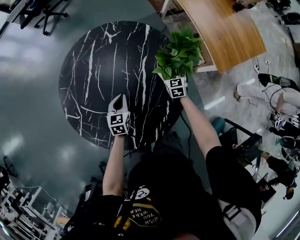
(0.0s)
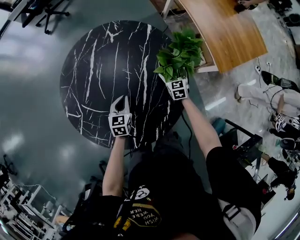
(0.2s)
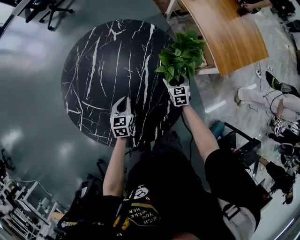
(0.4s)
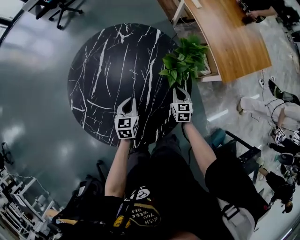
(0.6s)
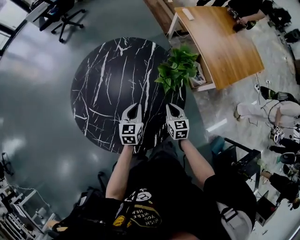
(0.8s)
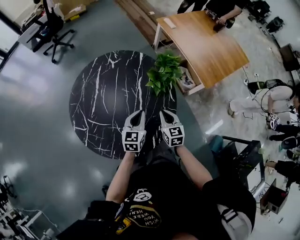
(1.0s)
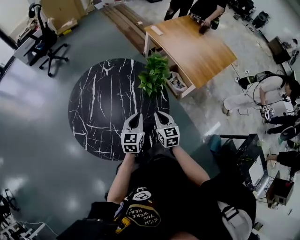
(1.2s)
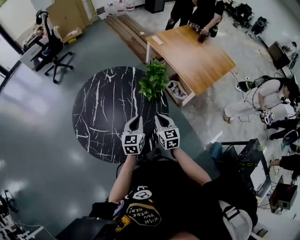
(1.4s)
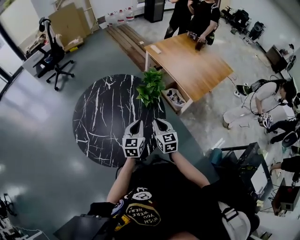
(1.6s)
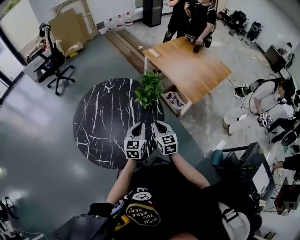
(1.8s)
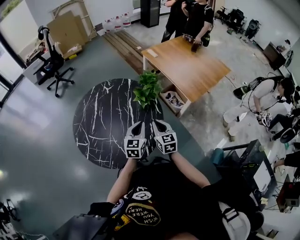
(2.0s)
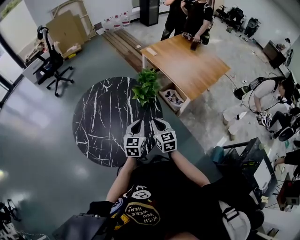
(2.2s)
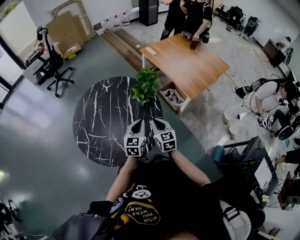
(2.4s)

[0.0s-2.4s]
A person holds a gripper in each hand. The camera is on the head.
0.0s to 1.2s: The left gripper heads upward, to the right and backward, covering some 25 cm, and rotates some 20 degrees. Meanwhile the right gripper heads upward and backward, covering some 35 cm, and closes its fingers.
1.2s to 2.4s: The right gripper shifts about 5 cm upward, while the left gripper travels to the right and upward by approximately 10 cm.

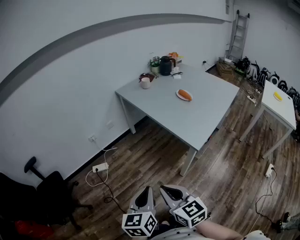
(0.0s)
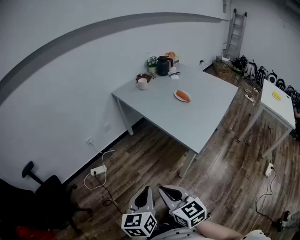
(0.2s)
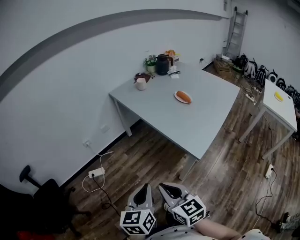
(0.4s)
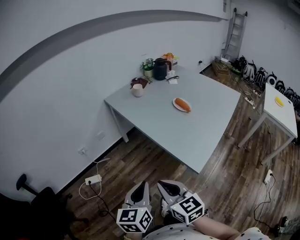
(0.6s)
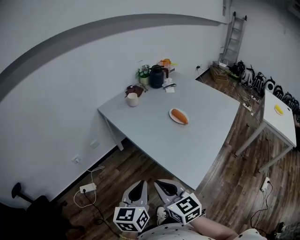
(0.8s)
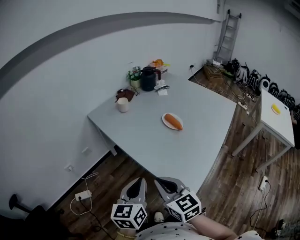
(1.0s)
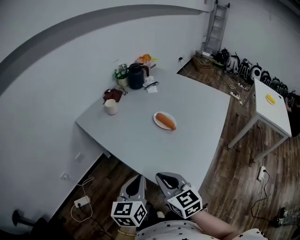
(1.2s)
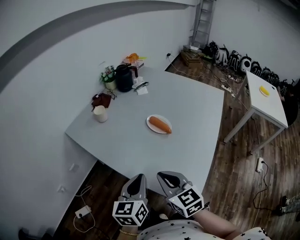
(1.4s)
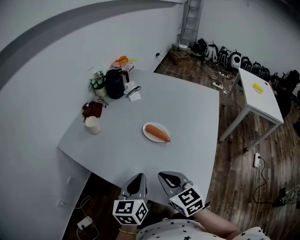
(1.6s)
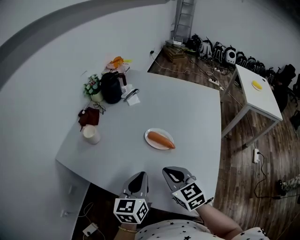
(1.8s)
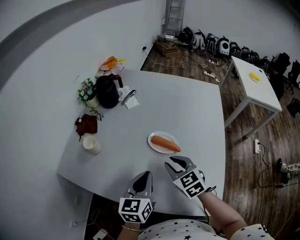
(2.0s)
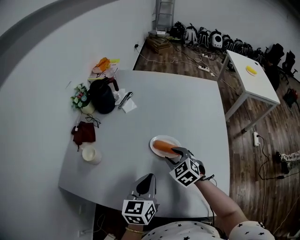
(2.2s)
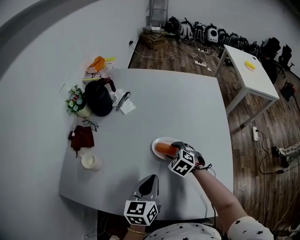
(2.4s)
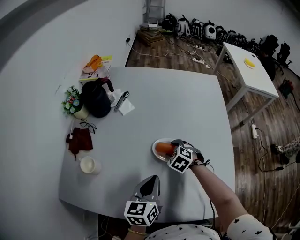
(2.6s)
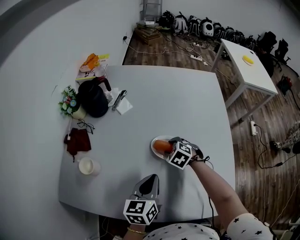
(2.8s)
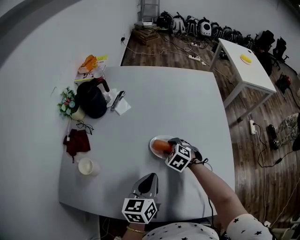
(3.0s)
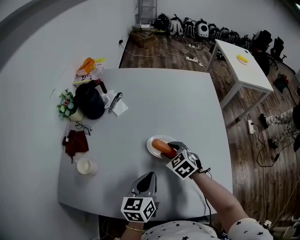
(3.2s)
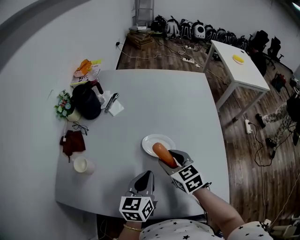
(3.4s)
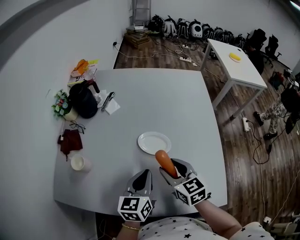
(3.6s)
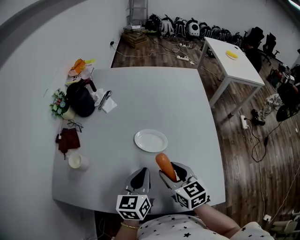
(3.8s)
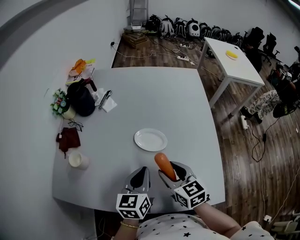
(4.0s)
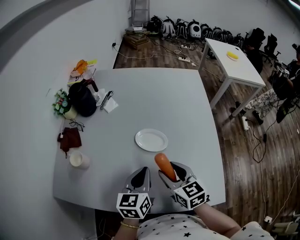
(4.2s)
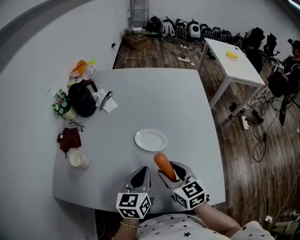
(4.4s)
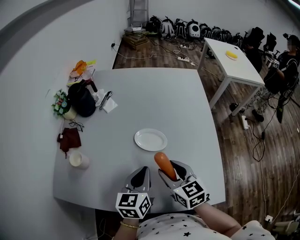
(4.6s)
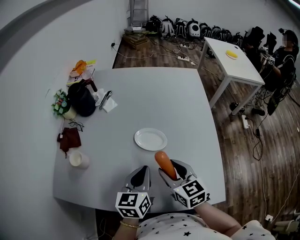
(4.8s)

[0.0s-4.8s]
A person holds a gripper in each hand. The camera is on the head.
0.0s to 1.6s: Both grippers are carried about 60 cm. The right gripper turns by roughly 20 degrees; the left gripper changes its angle by approximately 30 degrees.
1.6s to 3.2s: The right gripper ends up approximately 30 cm from where it was, changes its angle by roughly 30 degrees, and opens; the left gripper changes place by some 20 cm, and rotates some 30 degrees.
3.2s to 4.8s: The right gripper goes some 15 cm backward and upward, and swivels about 30 degrees, while the left gripper ends up roughly 5 cm from where it was.

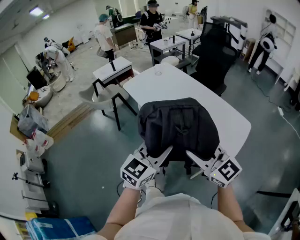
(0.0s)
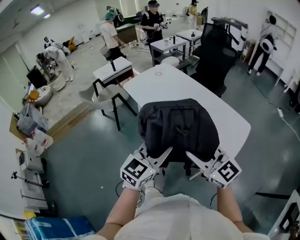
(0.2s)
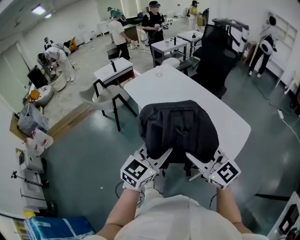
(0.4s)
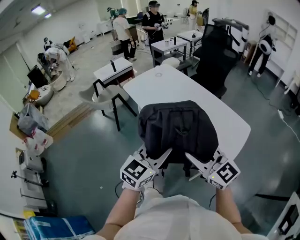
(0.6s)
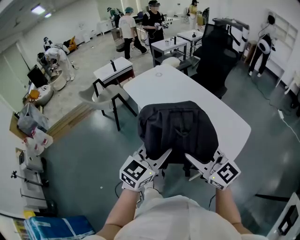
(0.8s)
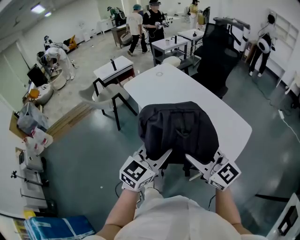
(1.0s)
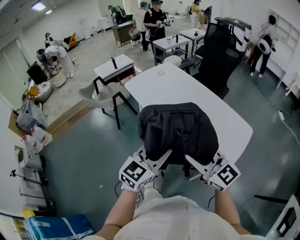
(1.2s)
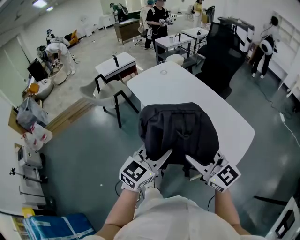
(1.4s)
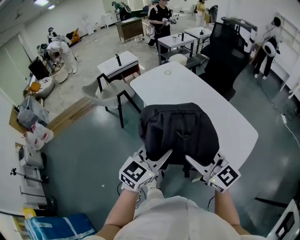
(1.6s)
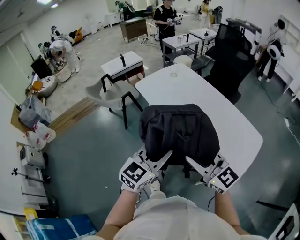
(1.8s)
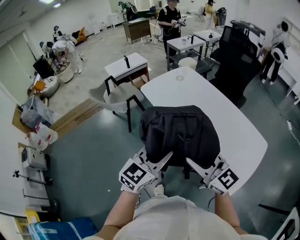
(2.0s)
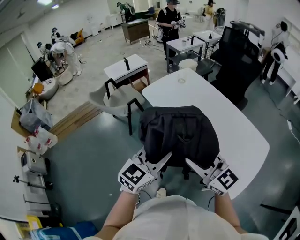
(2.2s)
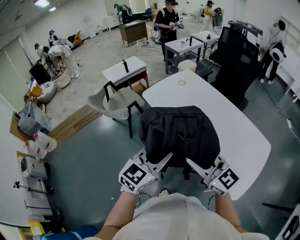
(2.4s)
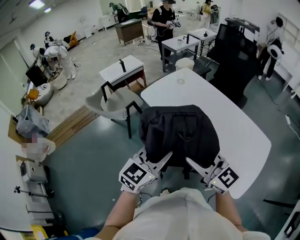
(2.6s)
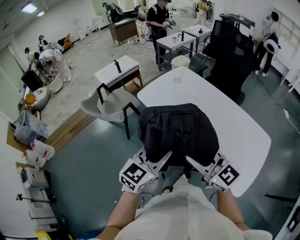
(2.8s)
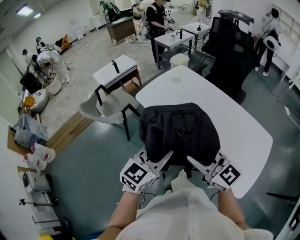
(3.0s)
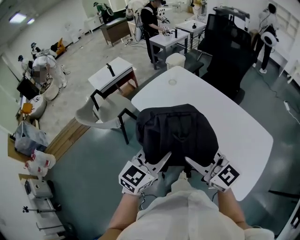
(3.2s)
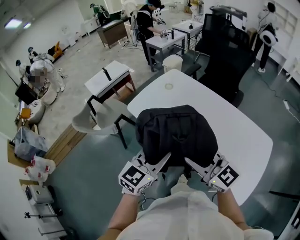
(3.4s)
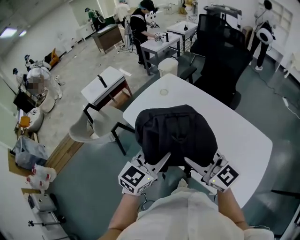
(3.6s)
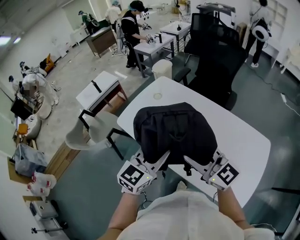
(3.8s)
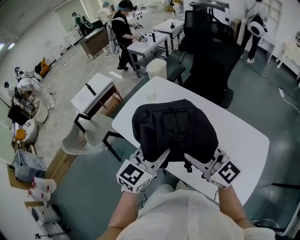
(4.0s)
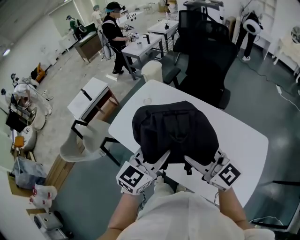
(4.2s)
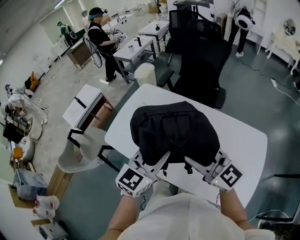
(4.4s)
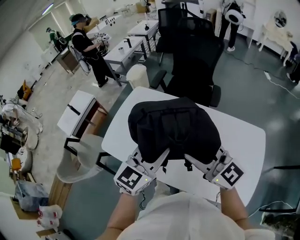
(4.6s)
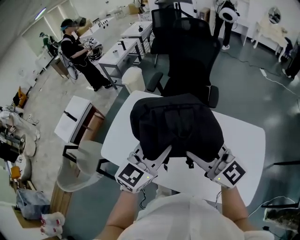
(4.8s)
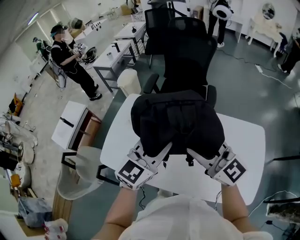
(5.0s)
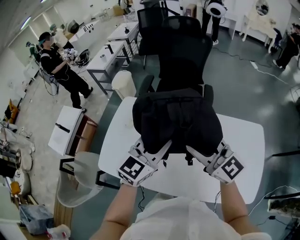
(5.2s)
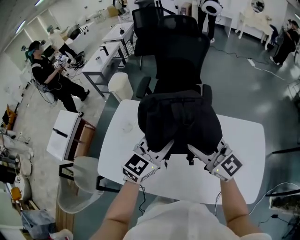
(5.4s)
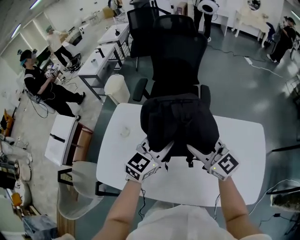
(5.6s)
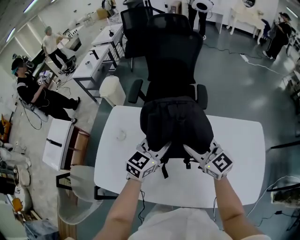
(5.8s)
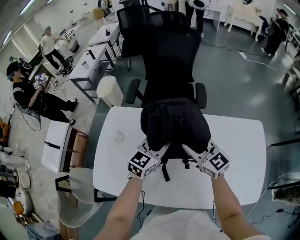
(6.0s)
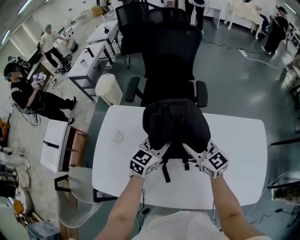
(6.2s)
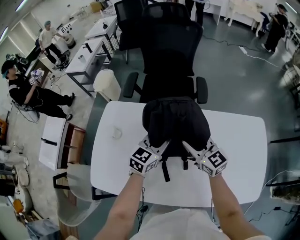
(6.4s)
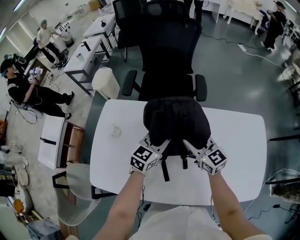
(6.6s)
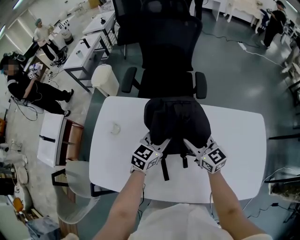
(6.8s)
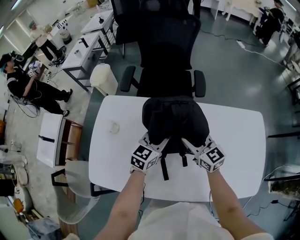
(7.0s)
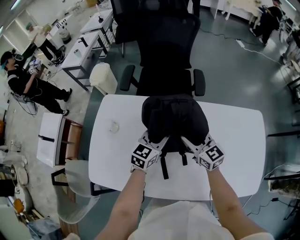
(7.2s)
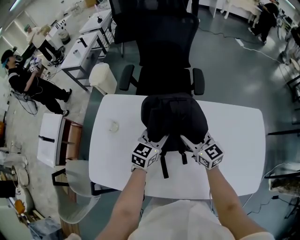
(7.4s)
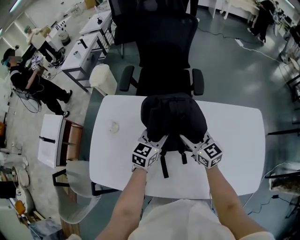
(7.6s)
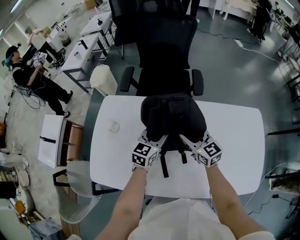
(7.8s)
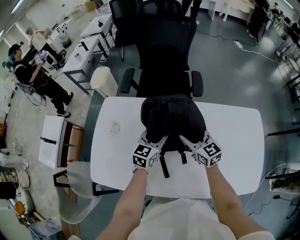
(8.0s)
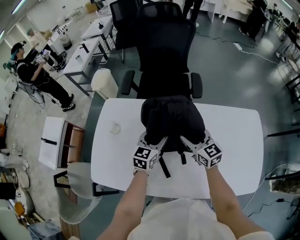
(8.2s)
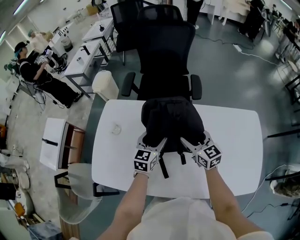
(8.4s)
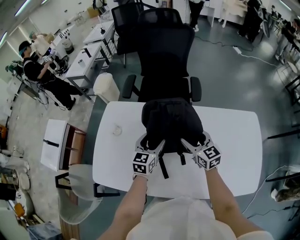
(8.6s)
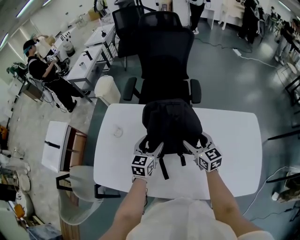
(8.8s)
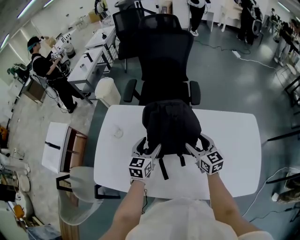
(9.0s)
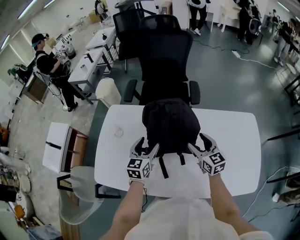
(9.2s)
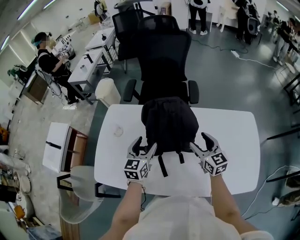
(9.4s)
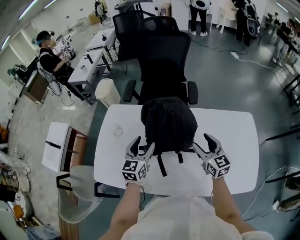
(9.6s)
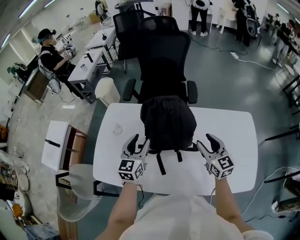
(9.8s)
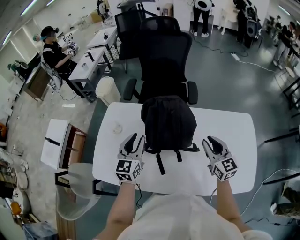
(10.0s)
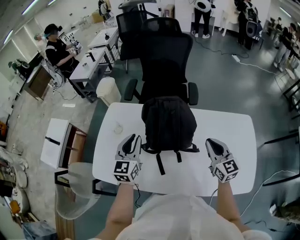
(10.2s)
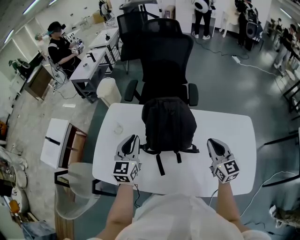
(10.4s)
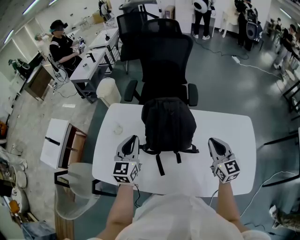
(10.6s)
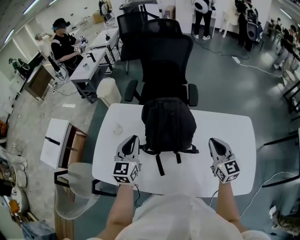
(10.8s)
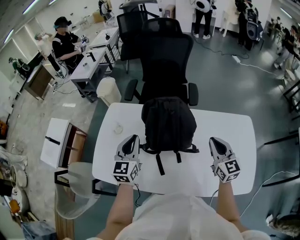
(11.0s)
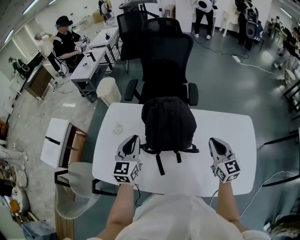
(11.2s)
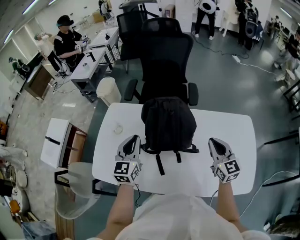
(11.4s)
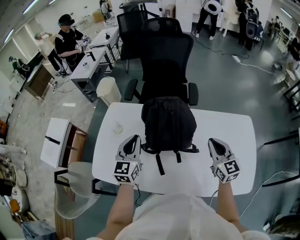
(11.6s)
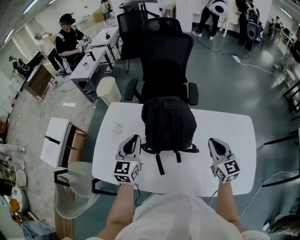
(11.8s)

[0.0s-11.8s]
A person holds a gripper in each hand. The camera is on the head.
0.0s to 1.4s: The grippers stay close to where they were, moving slightly.
1.4s to 3.0s: Both grippers move forward and to the left, some 25 cm.
3.0s to 4.4s: The grippers both shift forward and to the right by about 25 cm.
4.4s to 6.0s: Both grippers travel together forward and downward, about 25 cm. The right gripper rotates about 30 degrees; the left gripper rotates approximately 20 degrees.
6.0s to 7.4s: The grippers both shift downward by approximately 5 cm.
7.4s to 8.8s: The left gripper ends up roughly 5 cm from where it was, and opens.
8.8s to 10.4s: The left gripper moves upward and to the left, some 15 cm, and closes its fingers. The right gripper shifts about 15 cm upward, to the right and backward, and closes up.
10.4s to 11.8s: Both grippers stay put.

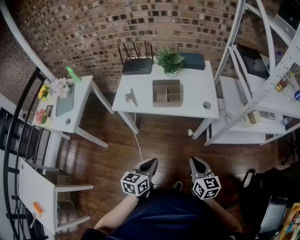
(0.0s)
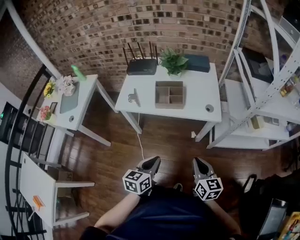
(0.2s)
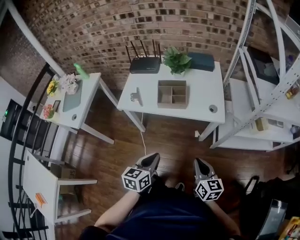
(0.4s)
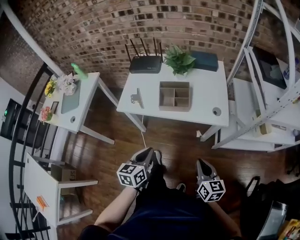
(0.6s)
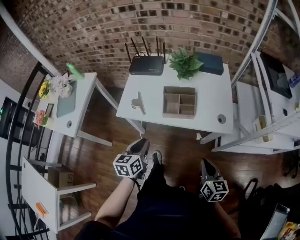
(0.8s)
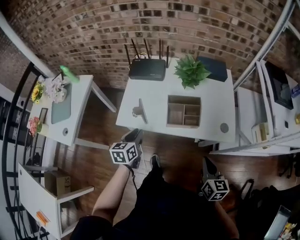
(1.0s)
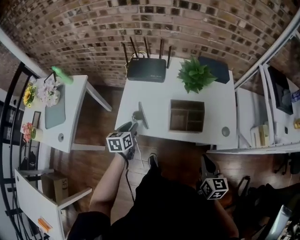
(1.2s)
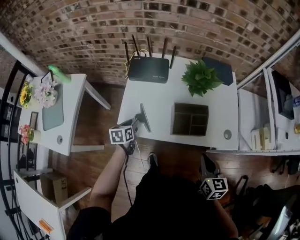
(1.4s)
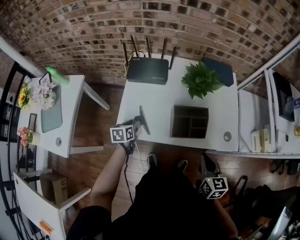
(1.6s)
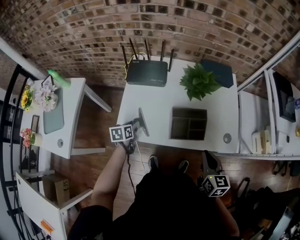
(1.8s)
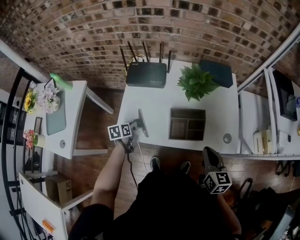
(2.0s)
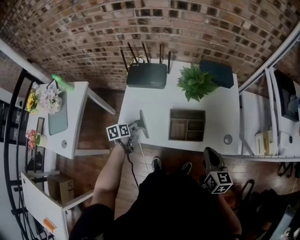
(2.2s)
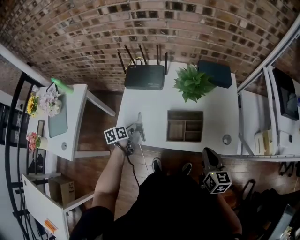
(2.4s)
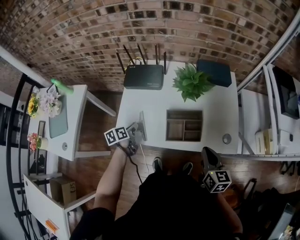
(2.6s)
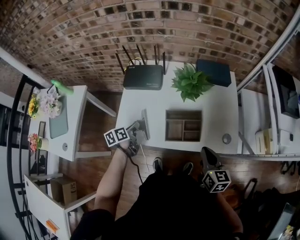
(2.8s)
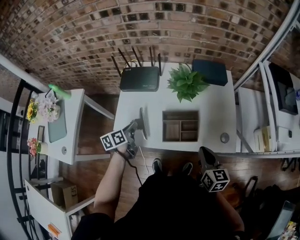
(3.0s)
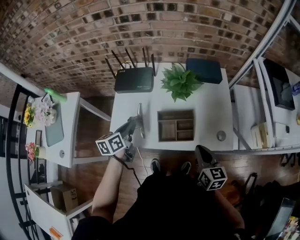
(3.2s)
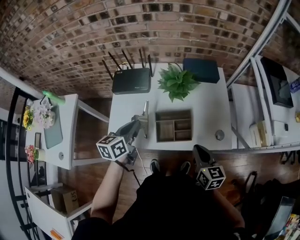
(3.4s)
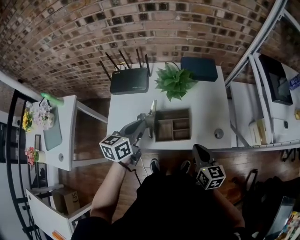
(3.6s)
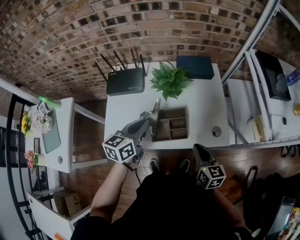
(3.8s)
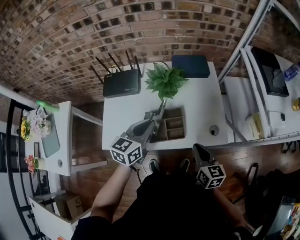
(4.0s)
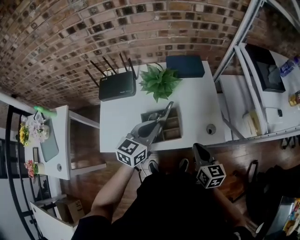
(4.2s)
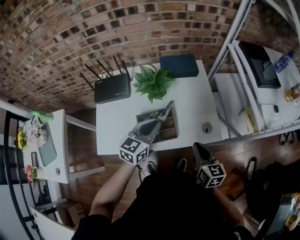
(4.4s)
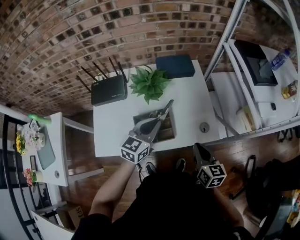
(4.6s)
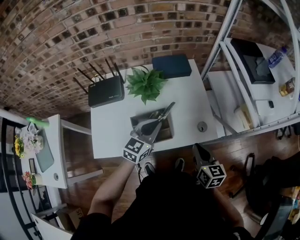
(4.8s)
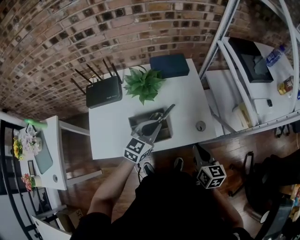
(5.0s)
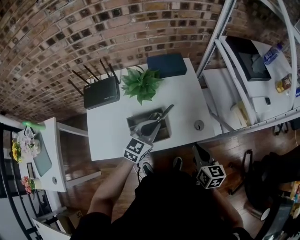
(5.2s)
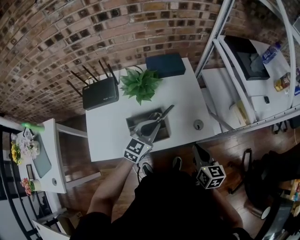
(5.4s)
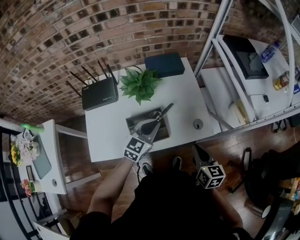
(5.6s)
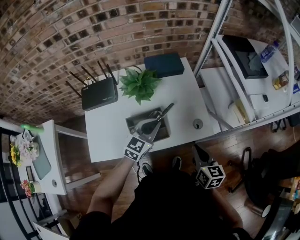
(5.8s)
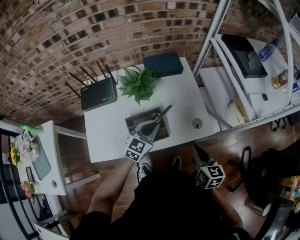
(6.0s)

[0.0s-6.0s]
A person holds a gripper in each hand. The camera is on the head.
0.0s to 1.6s: The right gripper is displaced forward by roughly 30 cm. Meanwhile the left gripper goes about 50 cm forward and to the left, rotates roughly 20 degrees, and opens its fingers.
1.6s to 3.0s: The left gripper travels upward by approximately 10 cm, rotates about 20 degrees, and closes, while the right gripper ends up about 5 cm from where it was.
3.0s to 4.4s: The left gripper shifts approximately 30 cm to the right and upward, and twists some 50 degrees clockwise, seen from behind, while the right gripper heads to the right, covering some 5 cm.
4.4s to 6.0s: The left gripper heads downward, covering some 5 cm.
